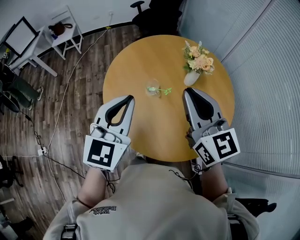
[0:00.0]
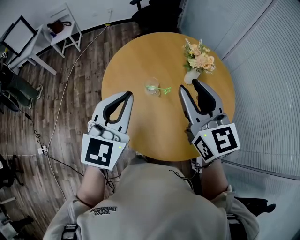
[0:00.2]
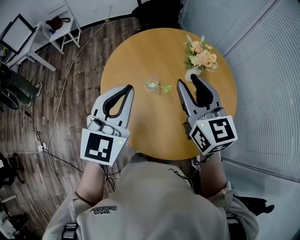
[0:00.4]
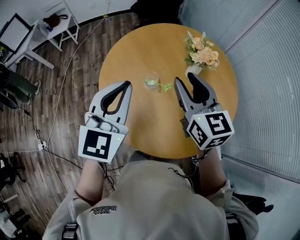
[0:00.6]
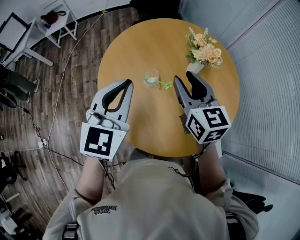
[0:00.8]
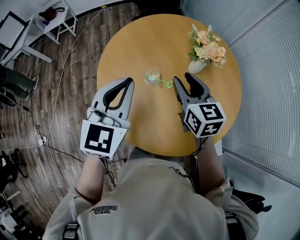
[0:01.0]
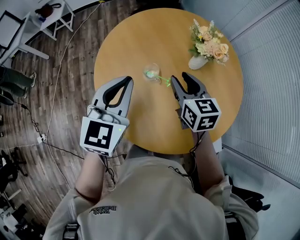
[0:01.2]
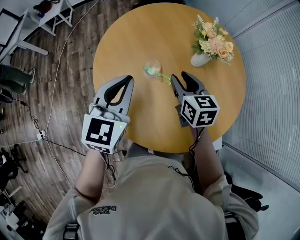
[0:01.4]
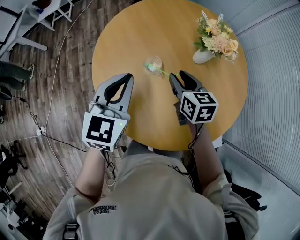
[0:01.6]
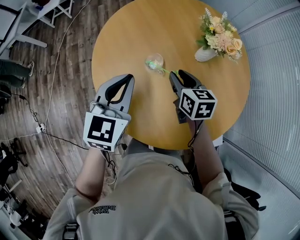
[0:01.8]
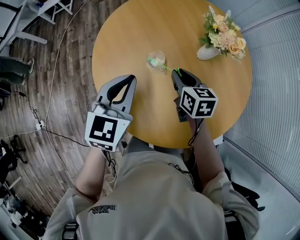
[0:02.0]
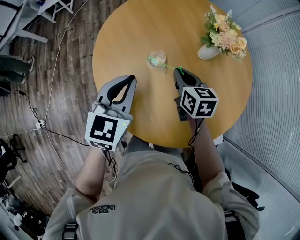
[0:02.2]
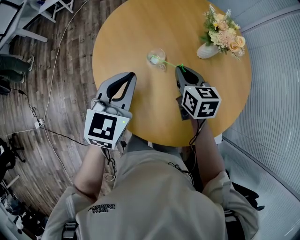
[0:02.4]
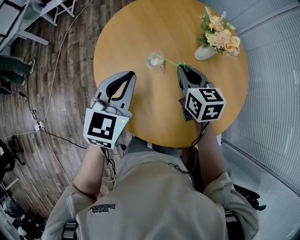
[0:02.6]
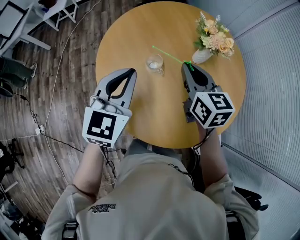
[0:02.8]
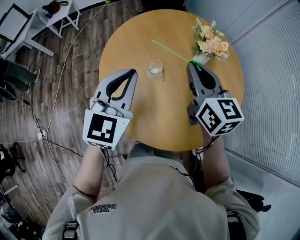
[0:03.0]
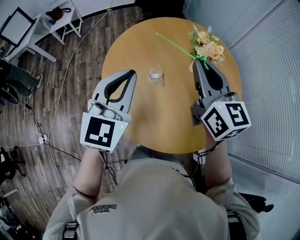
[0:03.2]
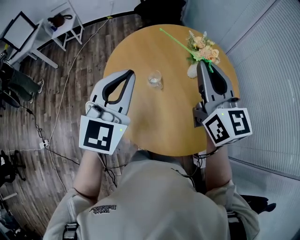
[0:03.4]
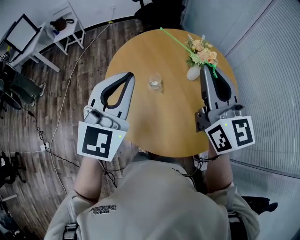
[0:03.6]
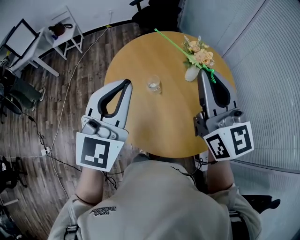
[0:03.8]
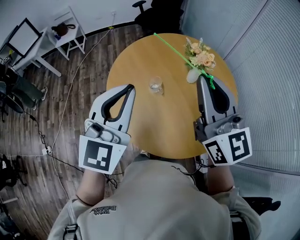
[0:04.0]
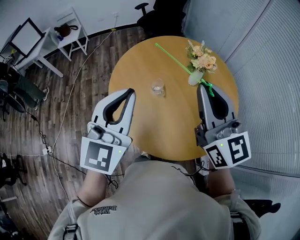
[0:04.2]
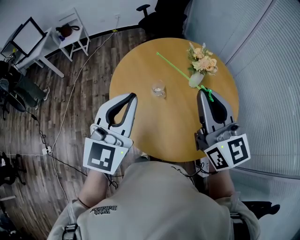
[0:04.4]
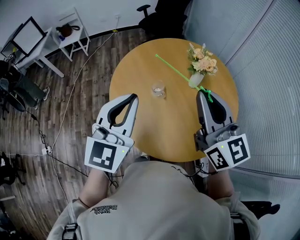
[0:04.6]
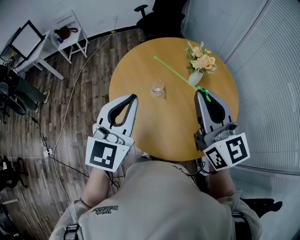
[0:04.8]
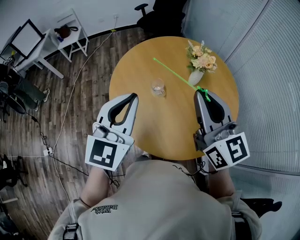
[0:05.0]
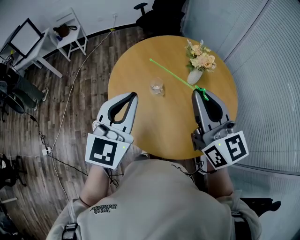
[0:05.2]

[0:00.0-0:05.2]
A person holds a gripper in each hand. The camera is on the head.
0:00.0 to 0:01.8: The right gripper goes approximately 30 cm downward and forward, tips its fingers downward by about 30 degrees, and opens; the left gripper heads downward and forward, covering roughly 20 cm.
0:01.8 to 0:03.4: The right gripper shifts about 30 cm upward, points its fingers some 40 degrees further upward, and closes its fingers. The left gripper heads upward, covering roughly 20 cm, and rotates roughly 20 degrees.
0:03.4 to 0:05.2: The two grippers go some 10 cm backward.

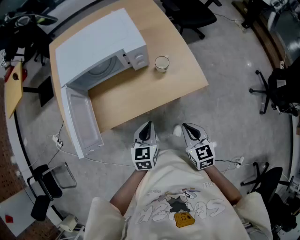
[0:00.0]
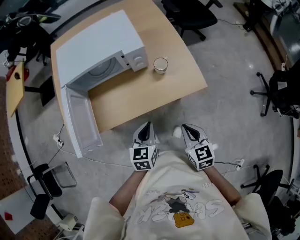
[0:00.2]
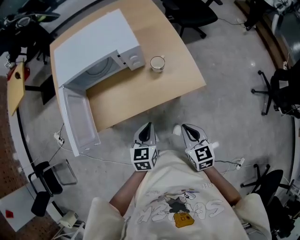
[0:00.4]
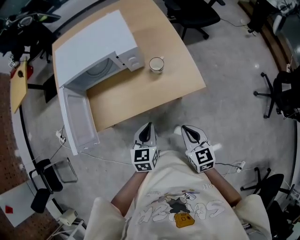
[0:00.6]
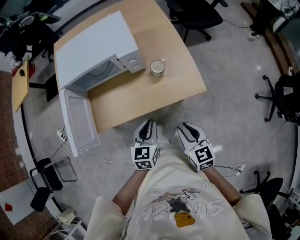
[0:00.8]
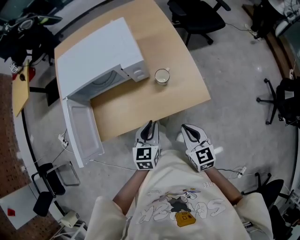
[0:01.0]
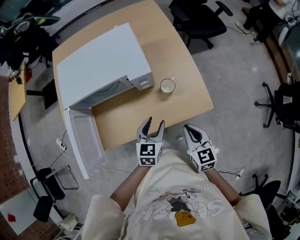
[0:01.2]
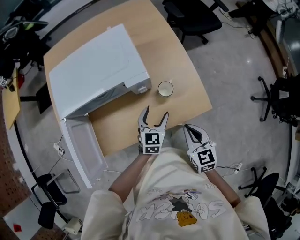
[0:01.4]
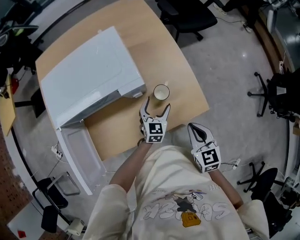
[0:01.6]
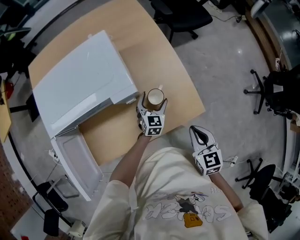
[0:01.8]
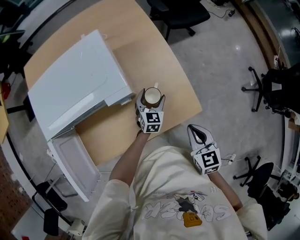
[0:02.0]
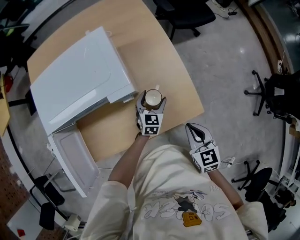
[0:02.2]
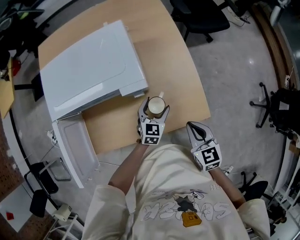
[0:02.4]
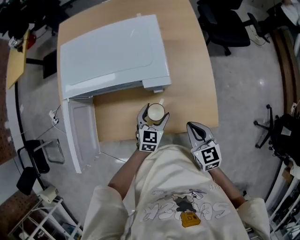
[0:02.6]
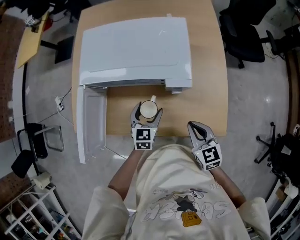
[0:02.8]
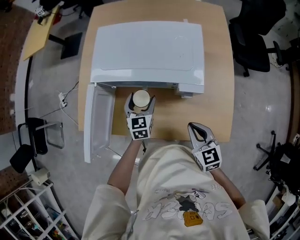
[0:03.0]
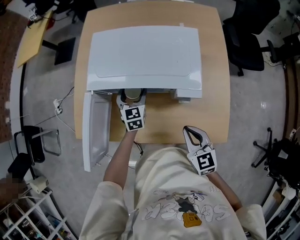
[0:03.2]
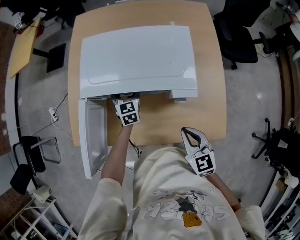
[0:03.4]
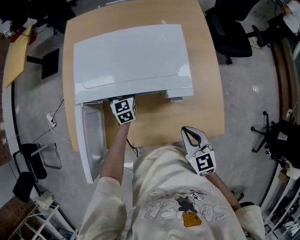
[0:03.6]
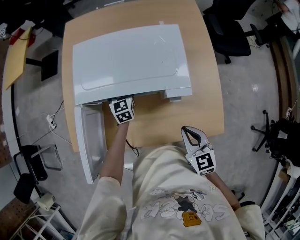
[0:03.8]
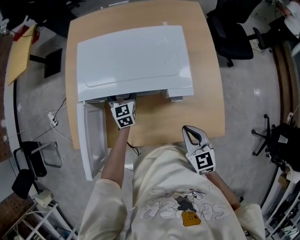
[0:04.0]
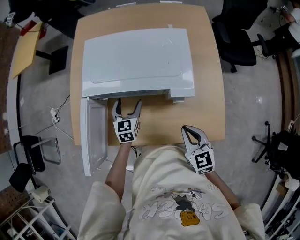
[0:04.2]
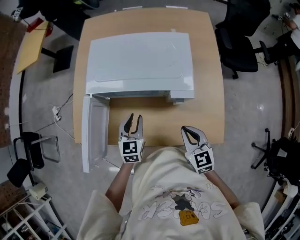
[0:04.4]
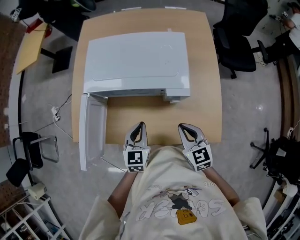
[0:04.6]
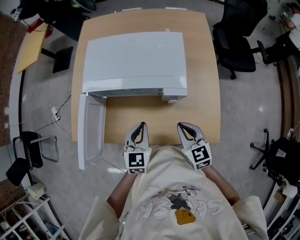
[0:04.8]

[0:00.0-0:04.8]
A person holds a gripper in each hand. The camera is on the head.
0:00.0 to 0:01.6: The right gripper is displaced forward by approximately 15 cm, and opens, then closes once more. Meanwhile the left gripper goes roughly 25 cm forward and to the right, and opens.
0:01.6 to 0:03.2: The right gripper ends up some 15 cm from where it was, and swivels some 30 degrees. Meanwhile the left gripper moves about 35 cm, and swivels some 40 degrees.
0:03.2 to 0:04.8: The left gripper heads backward and upward, covering about 20 cm, and closes its fingers.

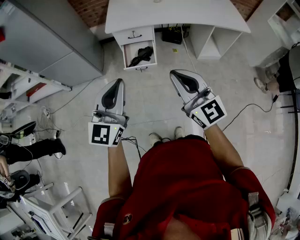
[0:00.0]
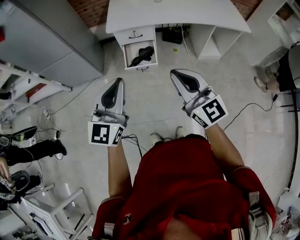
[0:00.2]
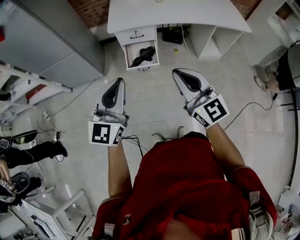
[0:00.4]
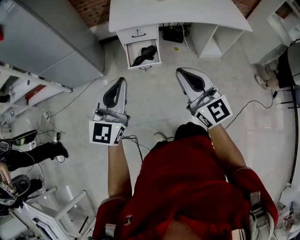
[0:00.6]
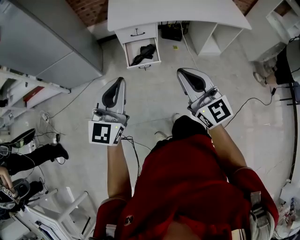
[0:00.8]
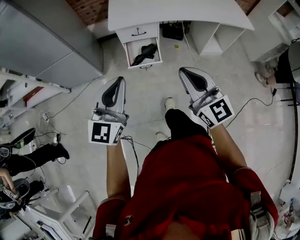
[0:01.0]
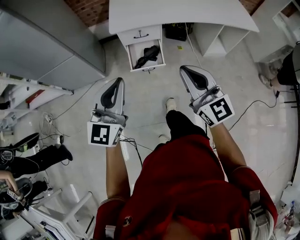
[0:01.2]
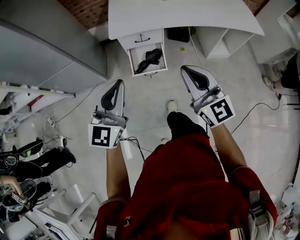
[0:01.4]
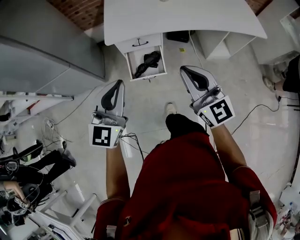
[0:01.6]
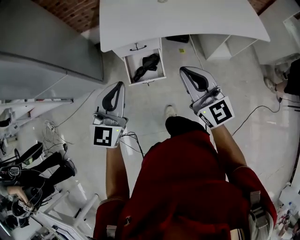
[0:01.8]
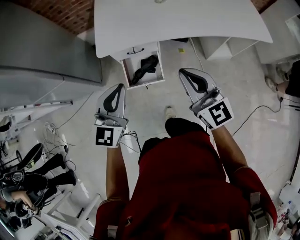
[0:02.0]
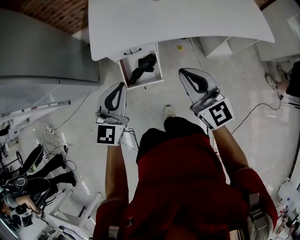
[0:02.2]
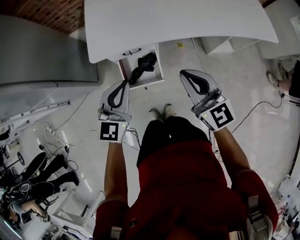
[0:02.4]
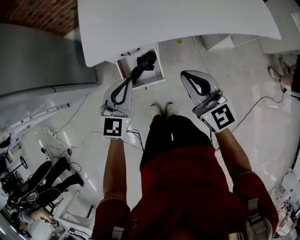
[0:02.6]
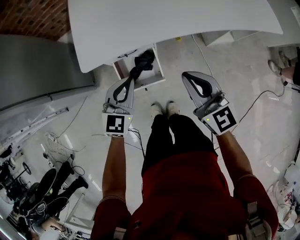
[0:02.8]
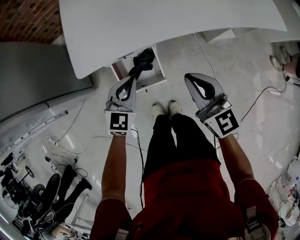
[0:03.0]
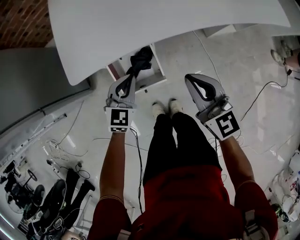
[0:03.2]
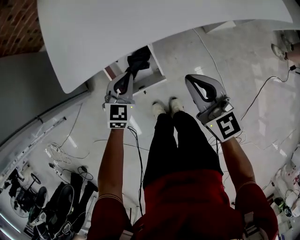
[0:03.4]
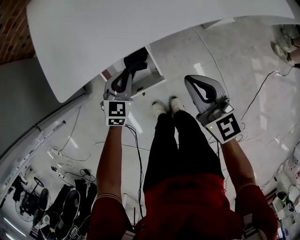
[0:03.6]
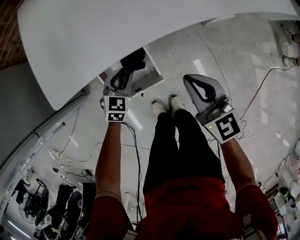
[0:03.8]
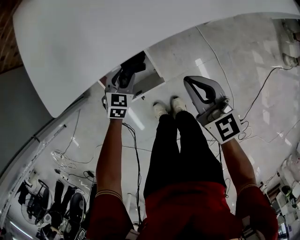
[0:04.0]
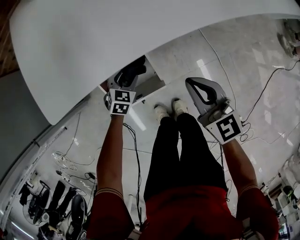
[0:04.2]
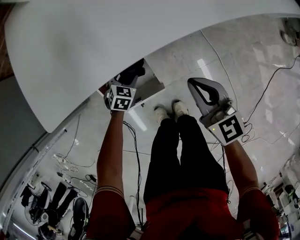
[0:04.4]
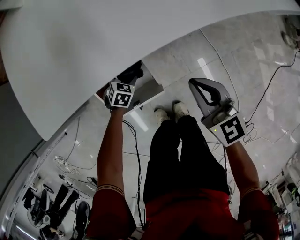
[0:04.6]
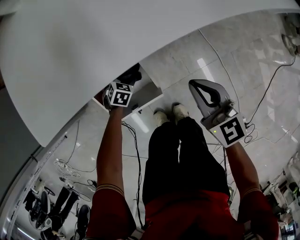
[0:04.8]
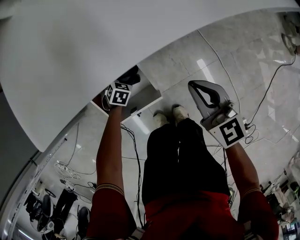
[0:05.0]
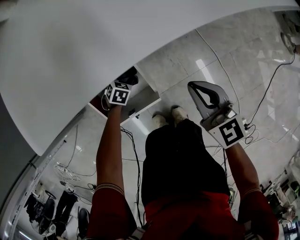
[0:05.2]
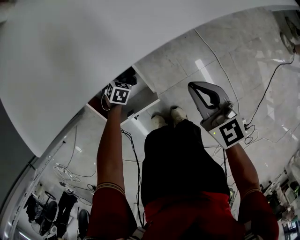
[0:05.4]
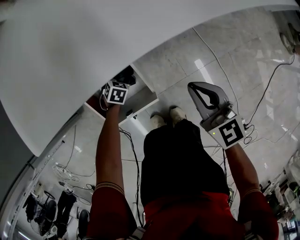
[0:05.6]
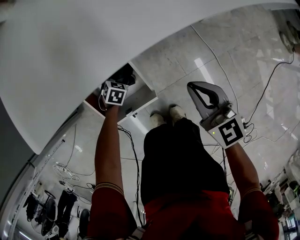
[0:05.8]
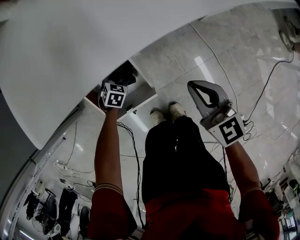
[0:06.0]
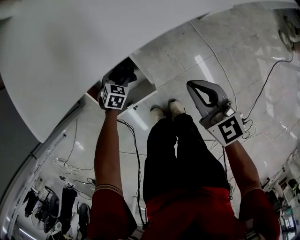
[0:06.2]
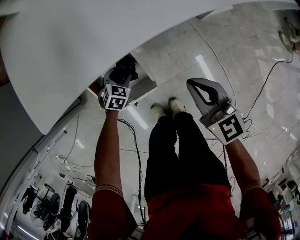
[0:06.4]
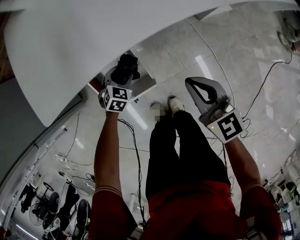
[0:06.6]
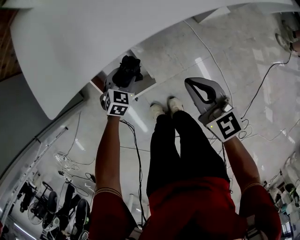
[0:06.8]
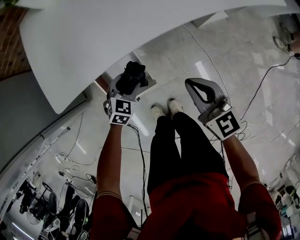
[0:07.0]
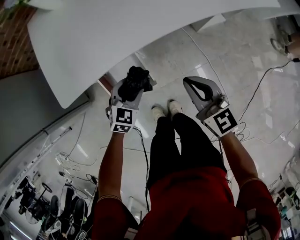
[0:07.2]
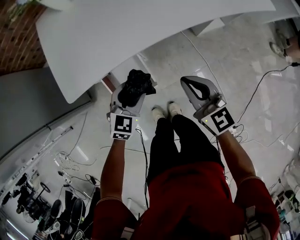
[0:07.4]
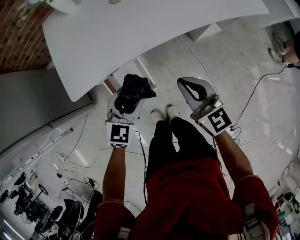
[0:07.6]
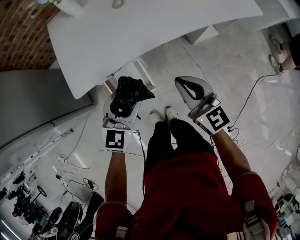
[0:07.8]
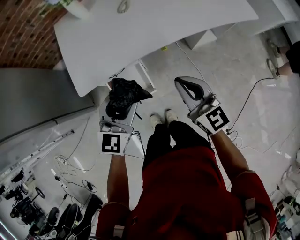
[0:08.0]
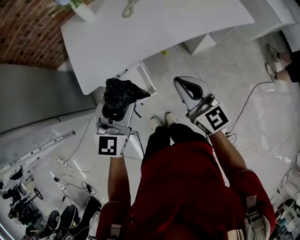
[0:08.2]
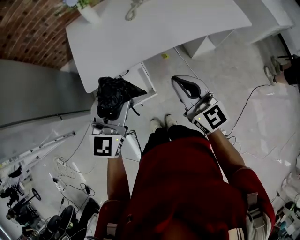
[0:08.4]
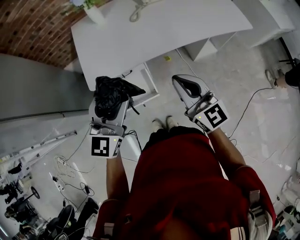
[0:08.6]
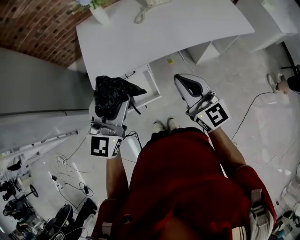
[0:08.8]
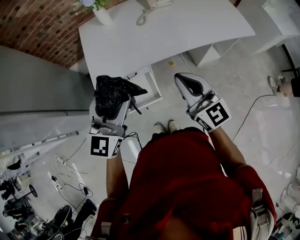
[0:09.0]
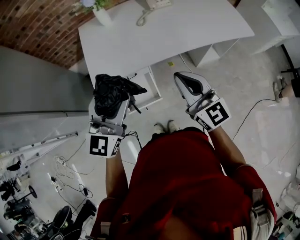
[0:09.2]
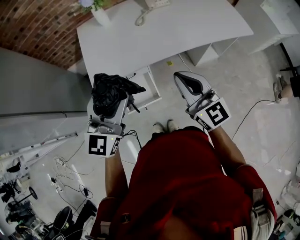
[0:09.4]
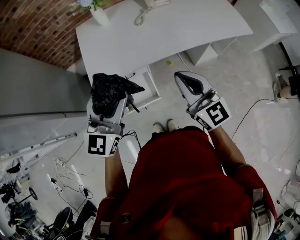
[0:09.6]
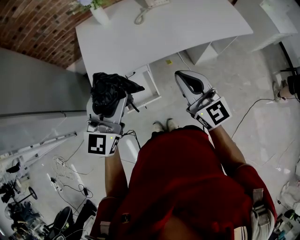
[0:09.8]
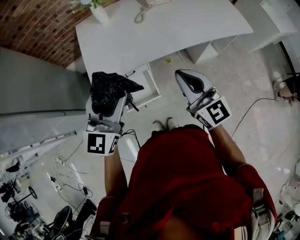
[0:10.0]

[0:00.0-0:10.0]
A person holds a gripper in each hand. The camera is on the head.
0:00.0 to 0:01.4: The right gripper goes about 15 cm forward. Meanwhile the left gripper goes about 15 cm forward and to the left.
0:01.4 to 0:02.8: Both grippers move forward and downward, about 35 cm. The left gripper swivels about 20 degrees.
0:02.8 to 0:04.2: The right gripper shifts some 25 cm downward. The left gripper travels downward by some 40 cm, points its fingers about 30 degrees further downward, and opens up.
0:04.2 to 0:05.8: The right gripper travels downward and to the right by some 10 cm; the left gripper heads downward, covering roughly 15 cm.
0:05.8 to 0:07.2: The left gripper heads upward, covering about 35 cm, and changes its angle by approximately 30 degrees. Meanwhile the right gripper is displaced upward by about 20 cm.
0:07.2 to 0:08.6: The left gripper shifts about 40 cm upward, and tilts its fingers roughly 40 degrees upward; the right gripper is displaced upward by some 25 cm.
0:08.6 to 0:10.0: There are only small adjustments of the grippers.

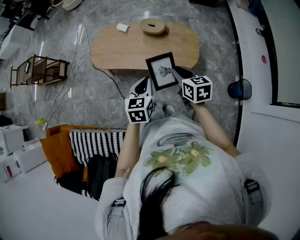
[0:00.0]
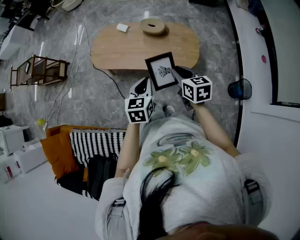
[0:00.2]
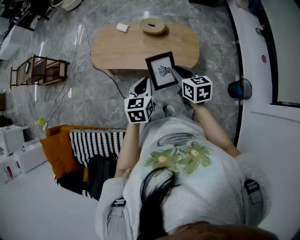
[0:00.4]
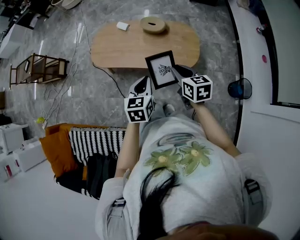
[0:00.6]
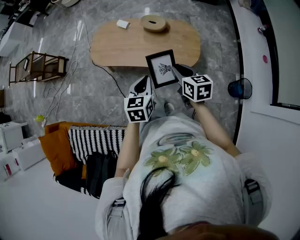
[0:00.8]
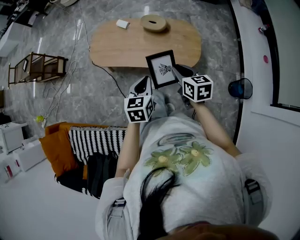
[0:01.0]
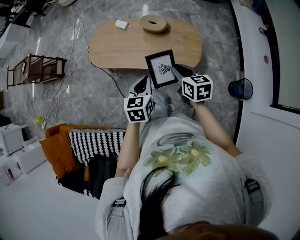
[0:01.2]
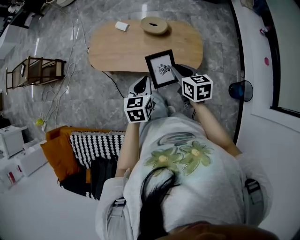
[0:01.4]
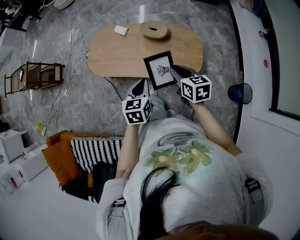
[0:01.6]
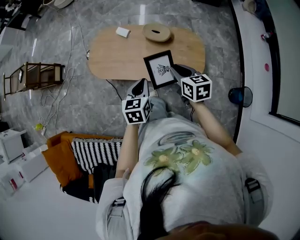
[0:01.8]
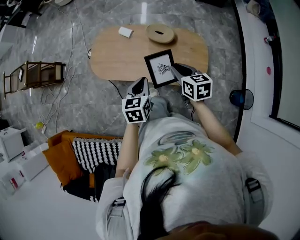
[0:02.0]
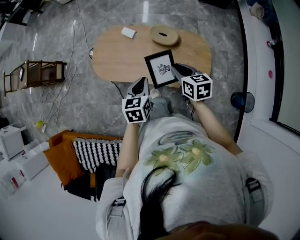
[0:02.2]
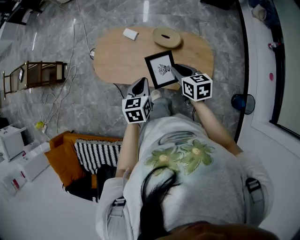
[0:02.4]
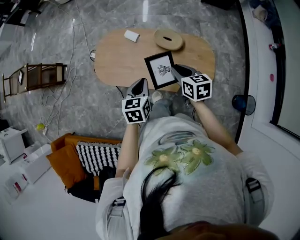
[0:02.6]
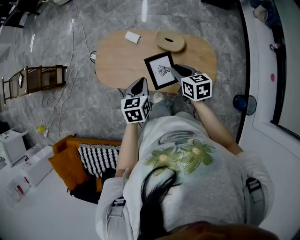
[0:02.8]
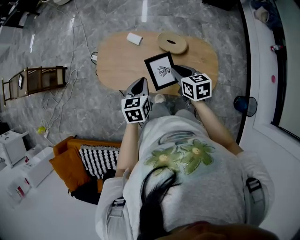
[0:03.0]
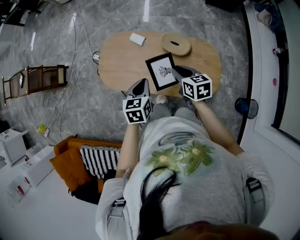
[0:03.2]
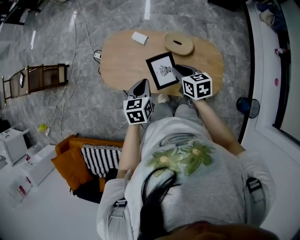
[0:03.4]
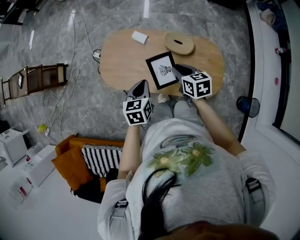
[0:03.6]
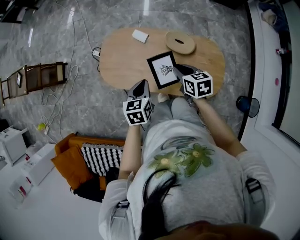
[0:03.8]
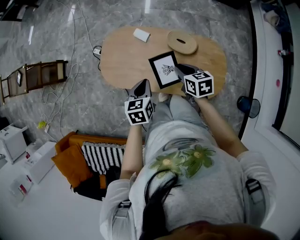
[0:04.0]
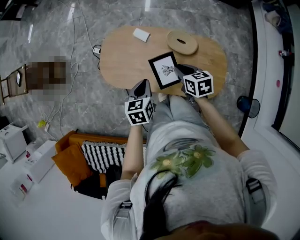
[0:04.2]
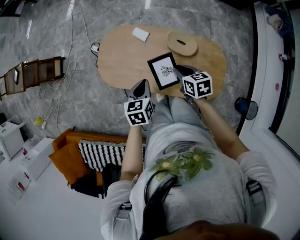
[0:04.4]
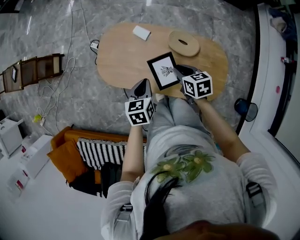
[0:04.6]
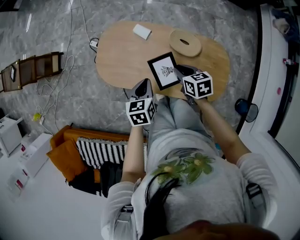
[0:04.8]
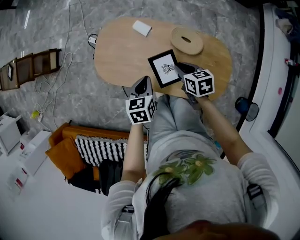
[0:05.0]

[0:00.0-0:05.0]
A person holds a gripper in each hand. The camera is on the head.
0:00.0 to 0:01.6: The grippers both shift forward by roughly 10 cm.
0:01.6 to 0:03.4: Both grippers travel together forward and to the left, some 20 cm.
0:03.4 to 0:05.0: The right gripper is displaced downward and forward by some 10 cm; the left gripper travels downward by roughly 10 cm.
